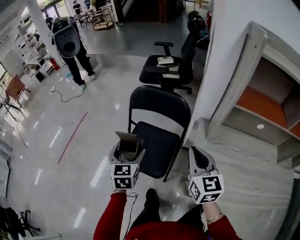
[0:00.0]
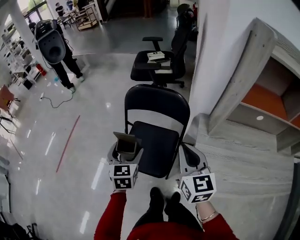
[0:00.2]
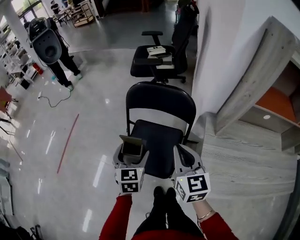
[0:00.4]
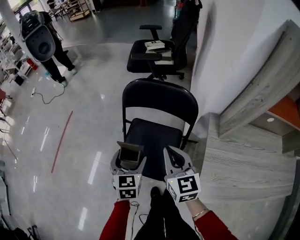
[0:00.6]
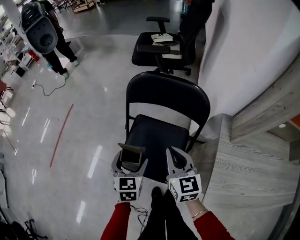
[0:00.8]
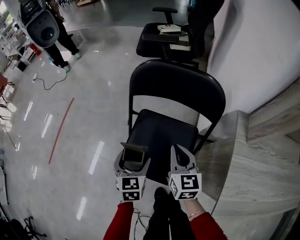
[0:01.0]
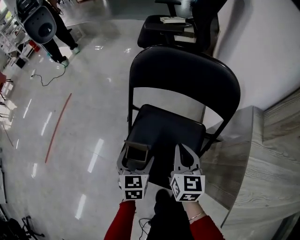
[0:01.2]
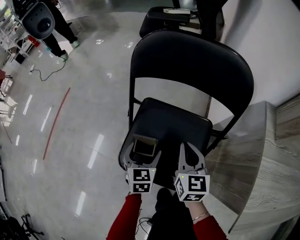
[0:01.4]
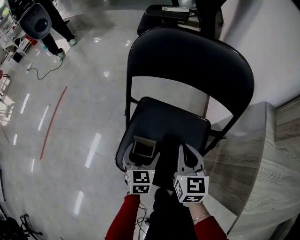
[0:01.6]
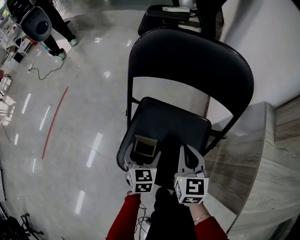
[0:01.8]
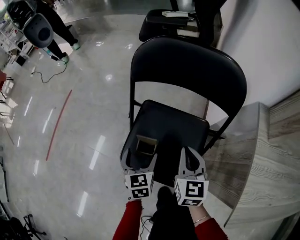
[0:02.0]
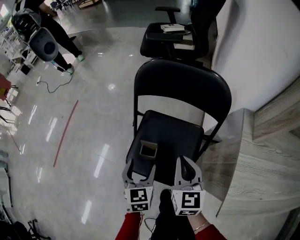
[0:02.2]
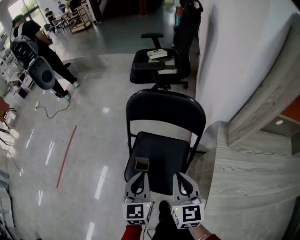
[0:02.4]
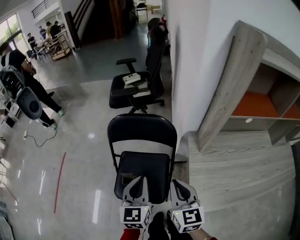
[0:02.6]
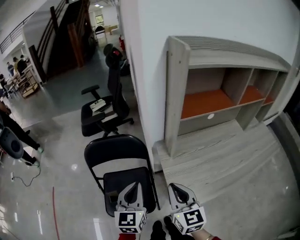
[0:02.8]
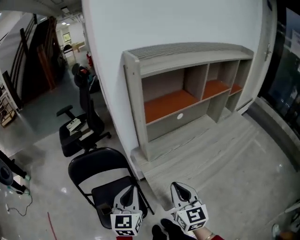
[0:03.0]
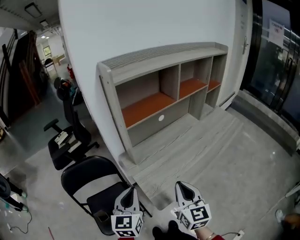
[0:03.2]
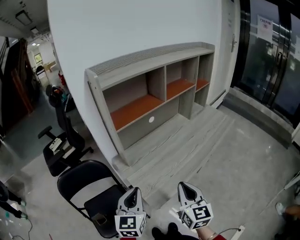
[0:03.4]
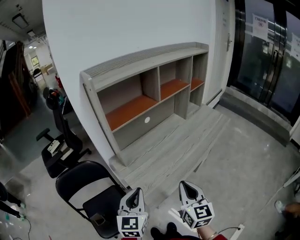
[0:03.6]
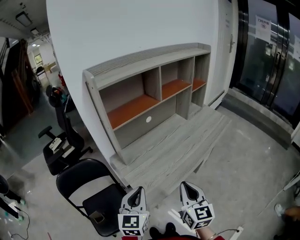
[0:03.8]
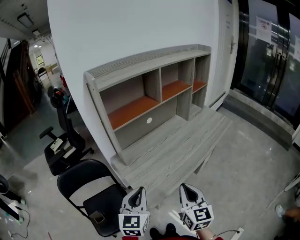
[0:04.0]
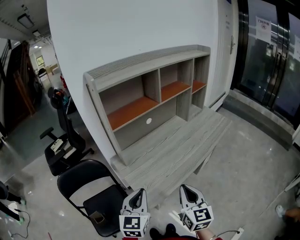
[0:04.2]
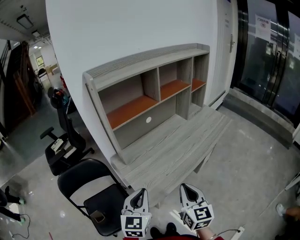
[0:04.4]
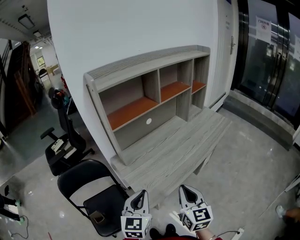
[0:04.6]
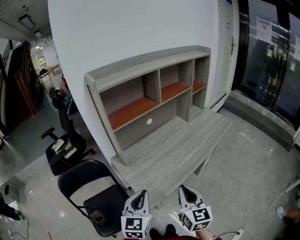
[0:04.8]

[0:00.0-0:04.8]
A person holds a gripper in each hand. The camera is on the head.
0.0 to 1.6 s: The left gripper goes some 35 cm downward. Meanwhile the right gripper travels downward and to the left by roughly 35 cm.
1.6 to 3.2 s: The left gripper moves upward, roughly 40 cm, rotates roughly 50 degrees, and closes, while the right gripper ends up about 50 cm from where it was, and turns by roughly 50 degrees.
3.2 to 4.8 s: Both grippers move to the right, approximately 10 cm.

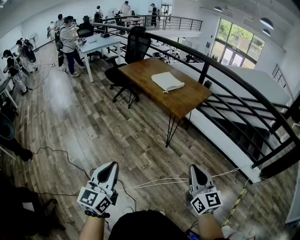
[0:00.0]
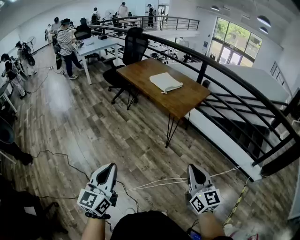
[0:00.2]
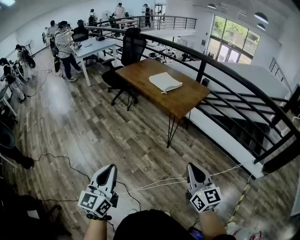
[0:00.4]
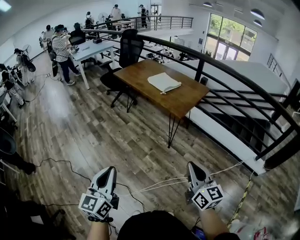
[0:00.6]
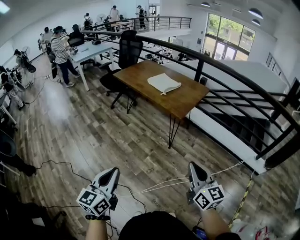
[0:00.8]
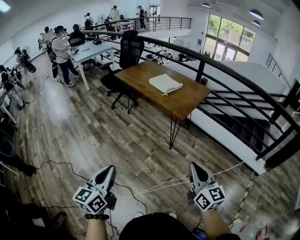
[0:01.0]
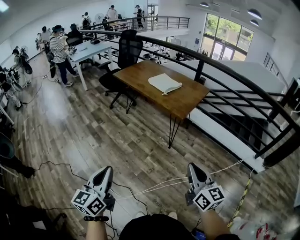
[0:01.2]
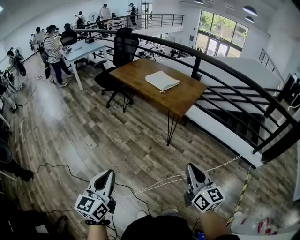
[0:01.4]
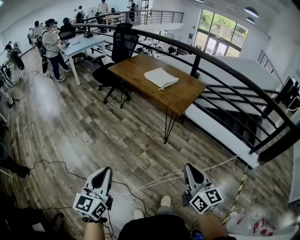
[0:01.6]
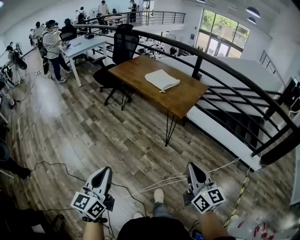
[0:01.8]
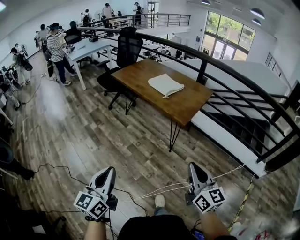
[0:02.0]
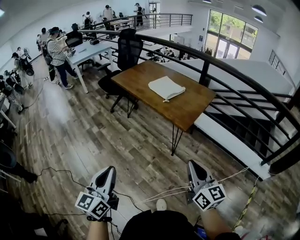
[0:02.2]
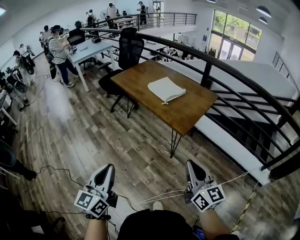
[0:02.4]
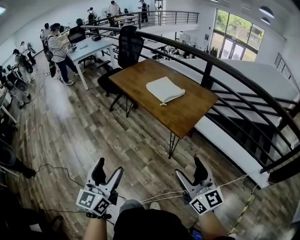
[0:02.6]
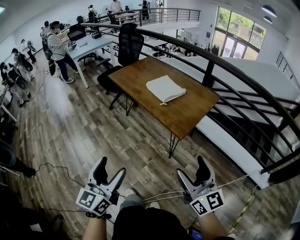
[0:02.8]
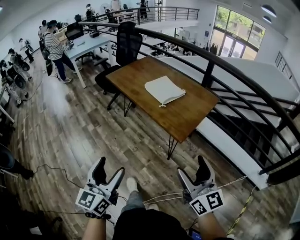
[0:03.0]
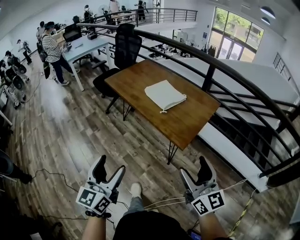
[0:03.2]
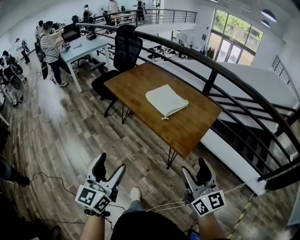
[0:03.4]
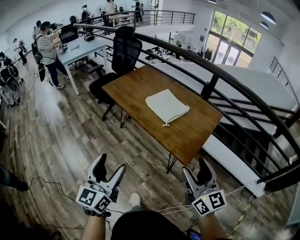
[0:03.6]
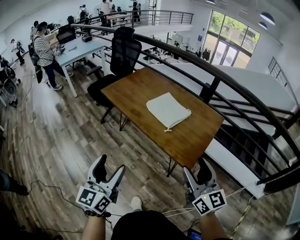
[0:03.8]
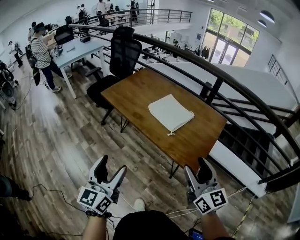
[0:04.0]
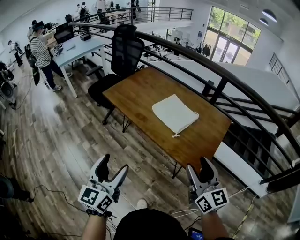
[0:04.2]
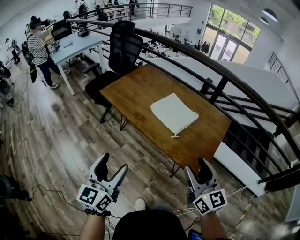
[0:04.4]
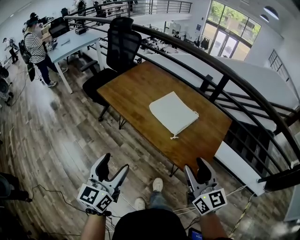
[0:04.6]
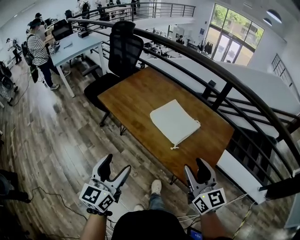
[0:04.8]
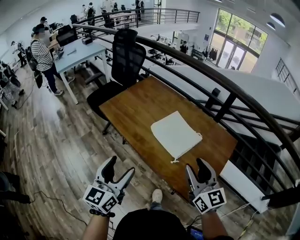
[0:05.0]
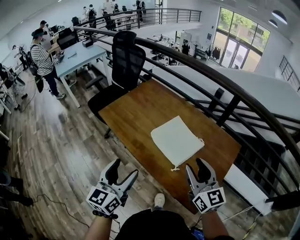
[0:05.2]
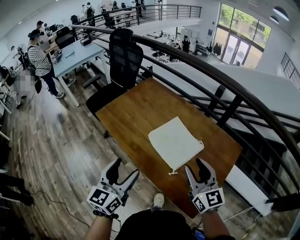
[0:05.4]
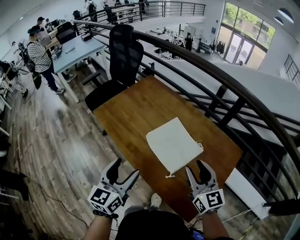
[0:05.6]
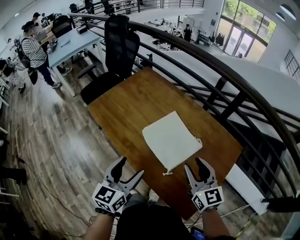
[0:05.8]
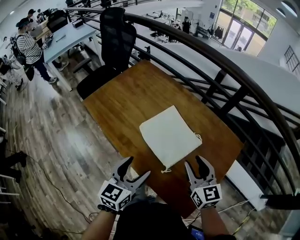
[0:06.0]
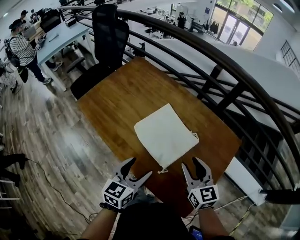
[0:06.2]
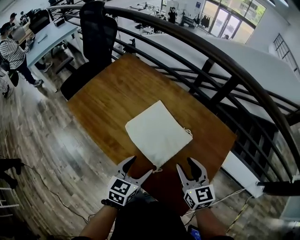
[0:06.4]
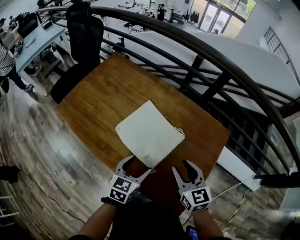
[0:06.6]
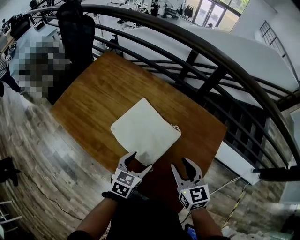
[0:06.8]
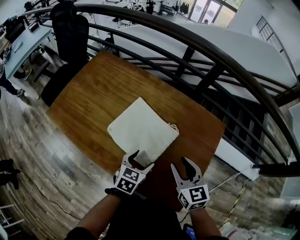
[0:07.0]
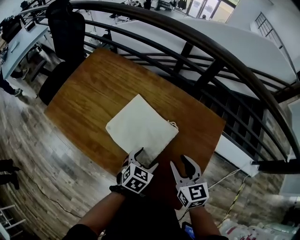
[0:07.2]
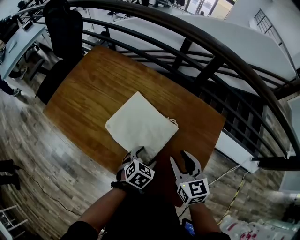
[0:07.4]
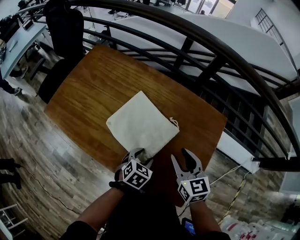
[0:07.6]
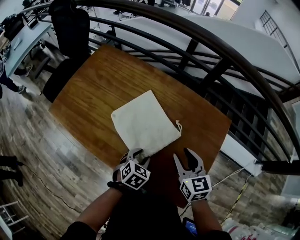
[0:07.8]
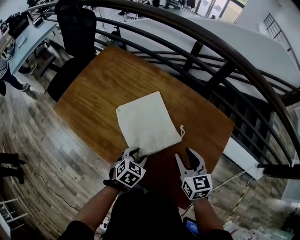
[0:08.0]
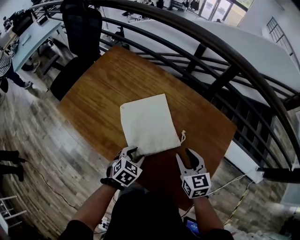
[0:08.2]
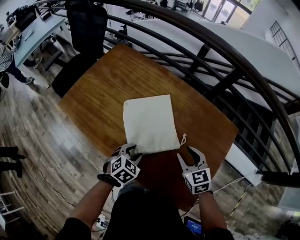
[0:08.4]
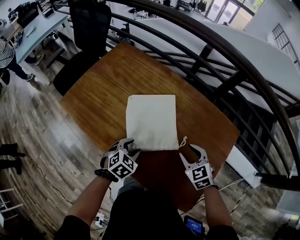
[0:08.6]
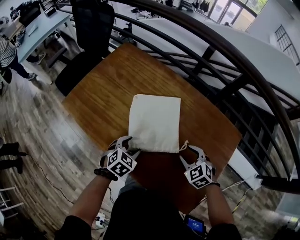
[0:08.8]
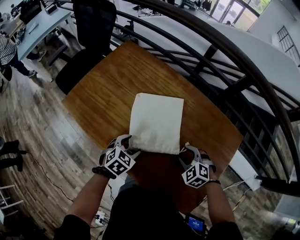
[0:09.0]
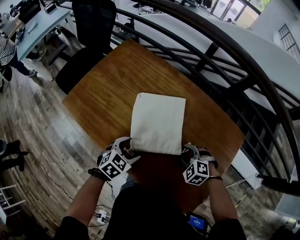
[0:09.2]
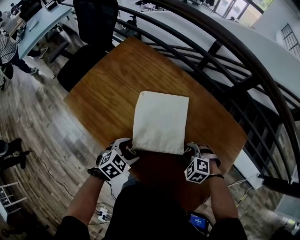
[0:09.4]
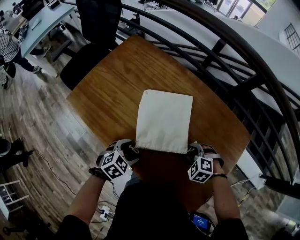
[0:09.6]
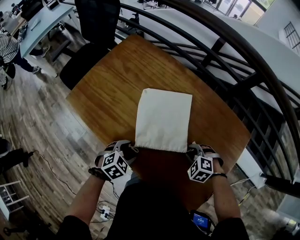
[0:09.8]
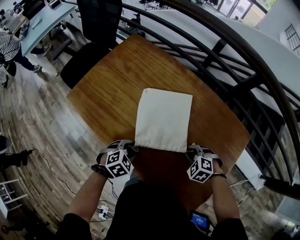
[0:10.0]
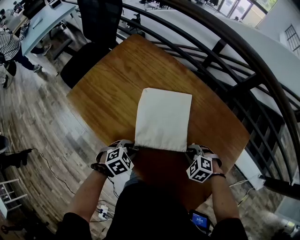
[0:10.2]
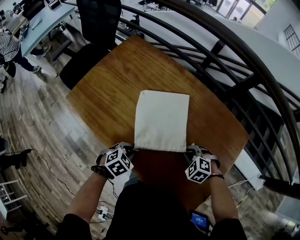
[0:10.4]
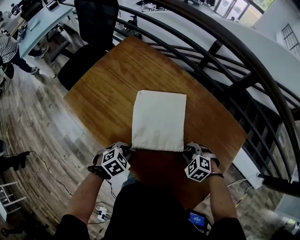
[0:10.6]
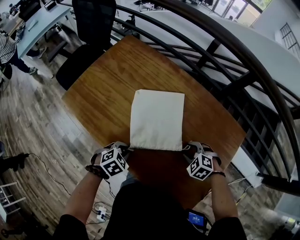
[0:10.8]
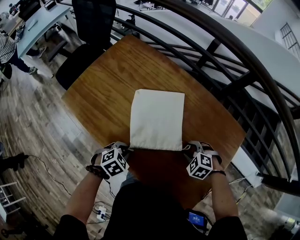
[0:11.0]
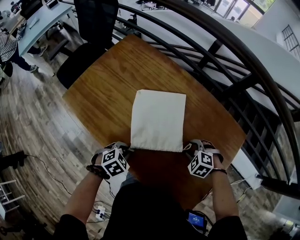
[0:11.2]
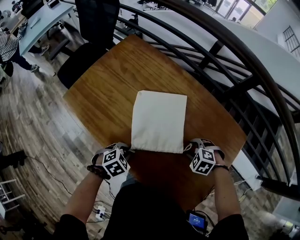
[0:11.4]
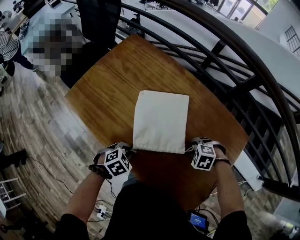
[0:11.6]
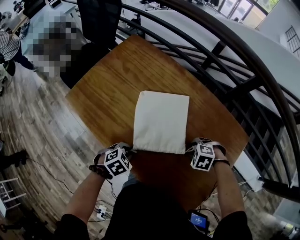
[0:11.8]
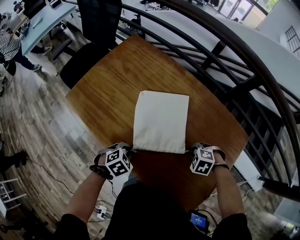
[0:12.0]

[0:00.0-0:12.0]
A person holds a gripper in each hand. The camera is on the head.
0.0 to 1.6 s: Both grippers move to the left, some 10 cm.
1.6 to 3.0 s: The left gripper shifts about 25 cm forward and to the right, and opens up; the right gripper heads forward, covering about 25 cm, and opens up.
3.0 to 4.4 s: Both grippers move forward, approximately 25 cm. The right gripper closes up.
4.4 to 6.0 s: The right gripper travels forward and downward by about 30 cm, while the left gripper goes approximately 30 cm forward, to the right and downward, and swivels about 20 degrees.
6.0 to 7.6 s: The right gripper moves some 5 cm, while the left gripper goes approximately 20 cm downward, to the right and forward, and angles its fingers downward, by some 30 degrees.
7.6 to 9.0 s: The left gripper shifts approximately 15 cm to the left; the right gripper moves downward, roughly 15 cm, and rolls counterclockwise, seen from behind, by about 50 degrees.
9.0 to 10.4 s: The left gripper heads backward, covering about 5 cm, and closes up; the right gripper closes up.
10.4 to 12.0 s: The right gripper opens, then closes again.

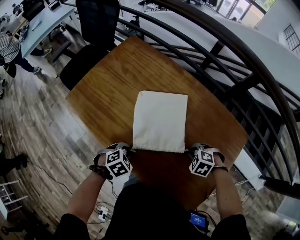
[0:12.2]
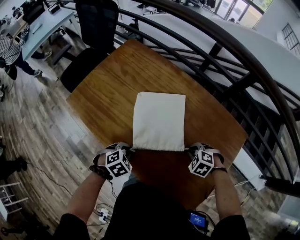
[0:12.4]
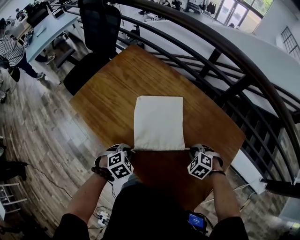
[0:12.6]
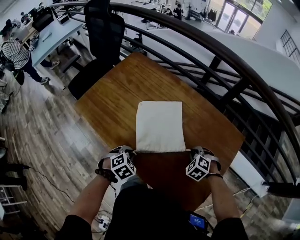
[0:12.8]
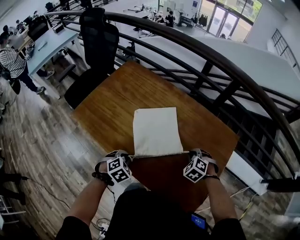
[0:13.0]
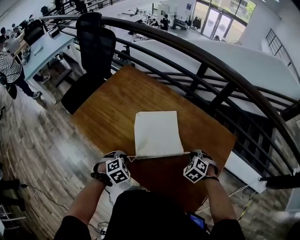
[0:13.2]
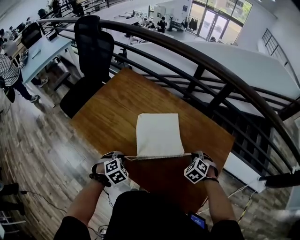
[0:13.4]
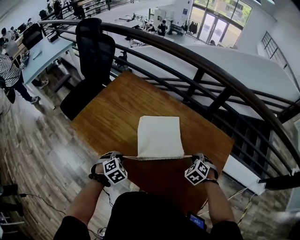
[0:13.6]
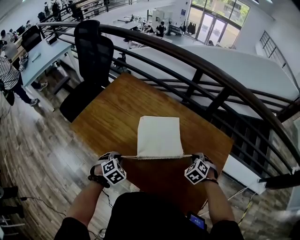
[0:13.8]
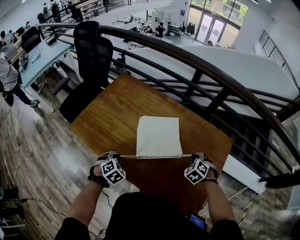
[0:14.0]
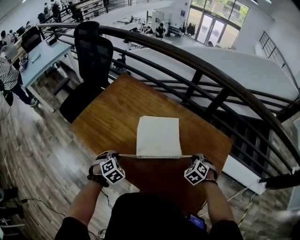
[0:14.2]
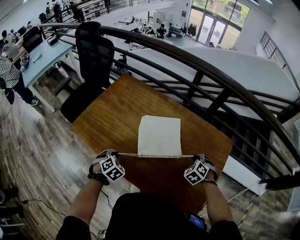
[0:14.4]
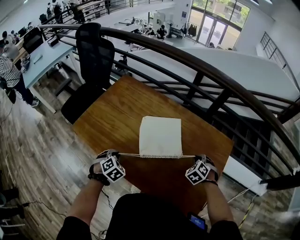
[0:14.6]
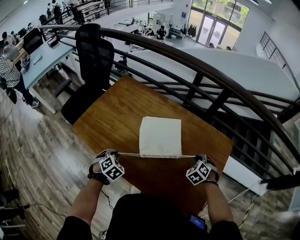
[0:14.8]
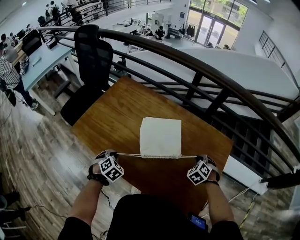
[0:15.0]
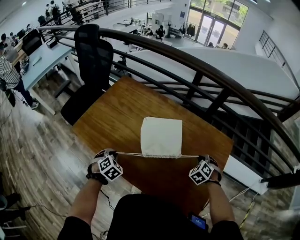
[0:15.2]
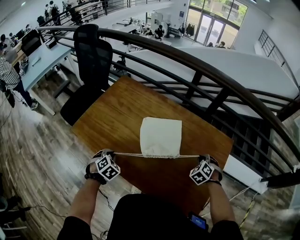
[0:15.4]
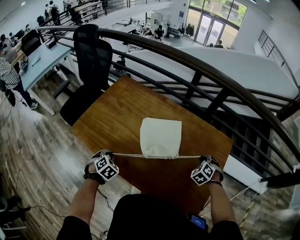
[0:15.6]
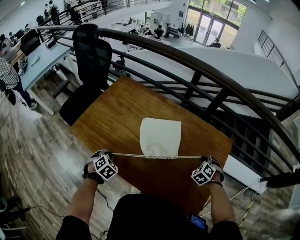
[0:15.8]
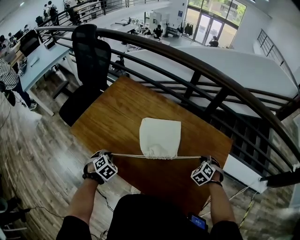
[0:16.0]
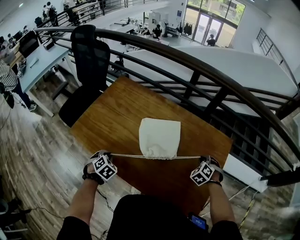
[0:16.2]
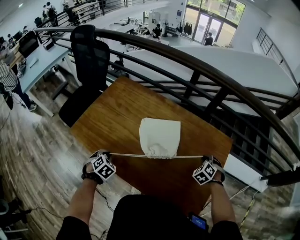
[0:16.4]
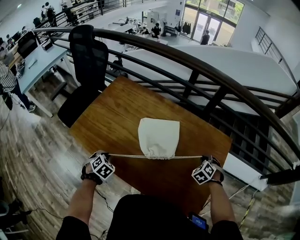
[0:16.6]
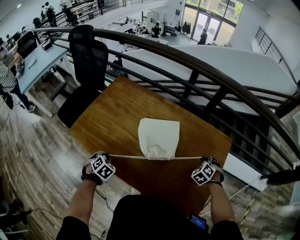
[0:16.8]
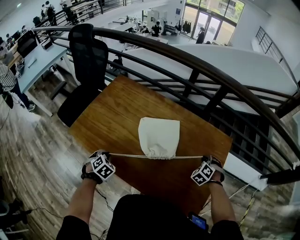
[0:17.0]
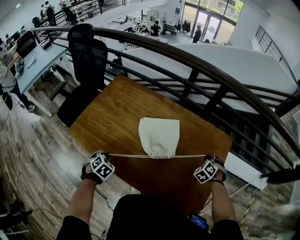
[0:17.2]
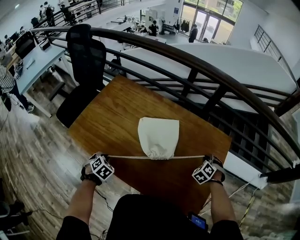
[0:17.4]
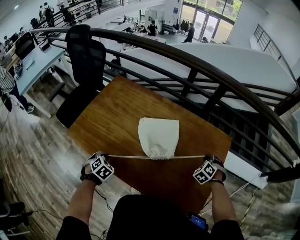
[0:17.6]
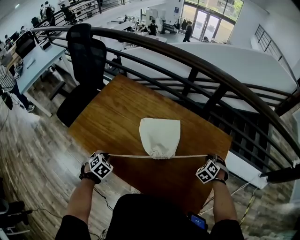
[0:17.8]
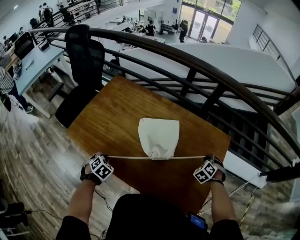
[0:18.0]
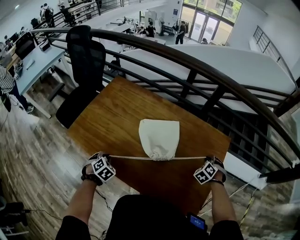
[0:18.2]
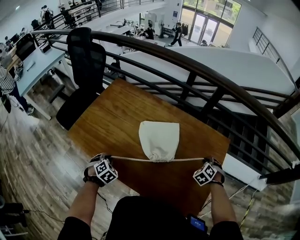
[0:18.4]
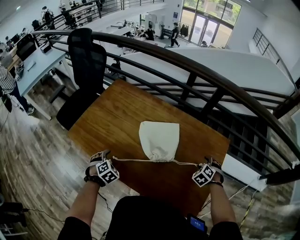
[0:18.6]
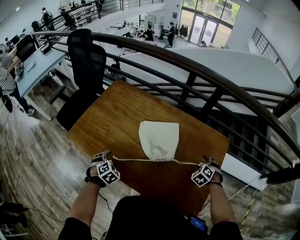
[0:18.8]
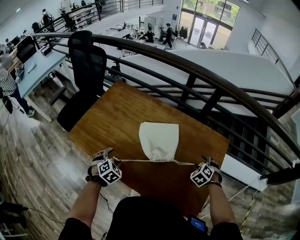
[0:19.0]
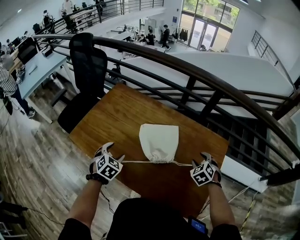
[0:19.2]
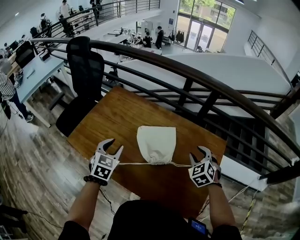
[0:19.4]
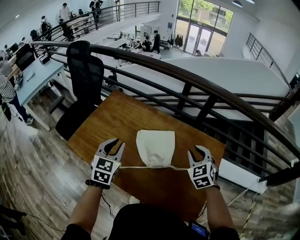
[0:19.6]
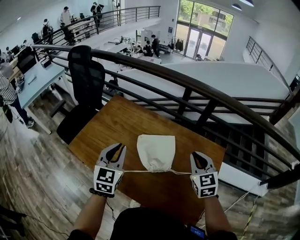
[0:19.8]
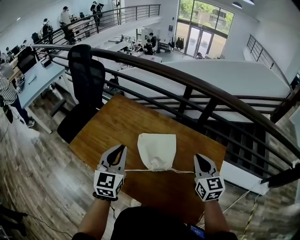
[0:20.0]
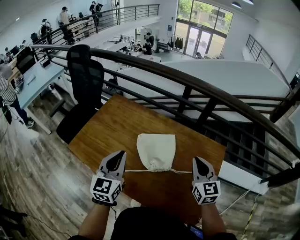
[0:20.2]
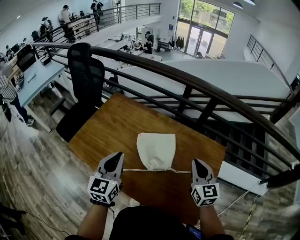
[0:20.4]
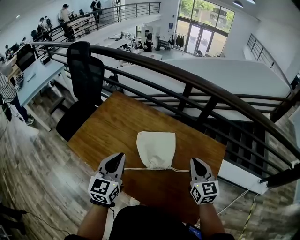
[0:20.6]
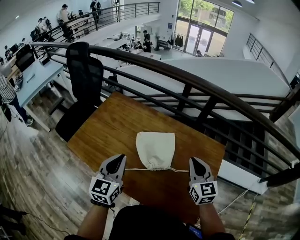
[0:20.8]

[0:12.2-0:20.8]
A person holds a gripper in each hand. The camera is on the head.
12.2 to 13.6 s: The left gripper moves some 10 cm, while the right gripper is displaced upward by some 5 cm, and swivels about 40 degrees.
13.6 to 15.0 s: The left gripper shifts by some 5 cm.
15.0 to 16.6 s: The grippers move only a little.
16.6 to 18.0 s: The grippers stay close to where they were, moving slightly.
18.0 to 19.4 s: The left gripper is displaced upward and forward by about 20 cm, tips its fingers upward by roughly 30 degrees, and opens. The right gripper moves upward and to the left, approximately 20 cm, changes its angle by roughly 30 degrees, and opens.
19.4 to 20.8 s: The right gripper heads upward, covering approximately 10 cm, changes its angle by roughly 50 degrees, and closes its fingers; the left gripper goes roughly 10 cm upward, to the right and backward, changes its angle by some 30 degrees, and closes its fingers.
